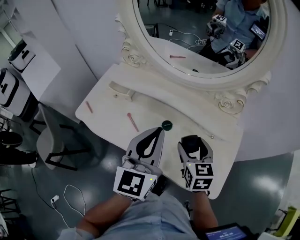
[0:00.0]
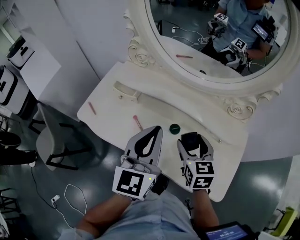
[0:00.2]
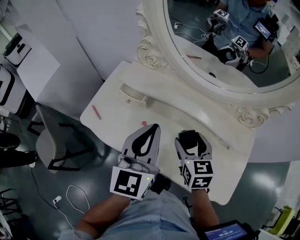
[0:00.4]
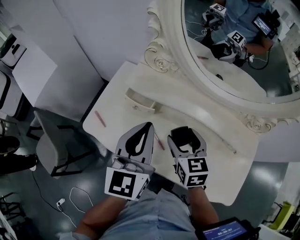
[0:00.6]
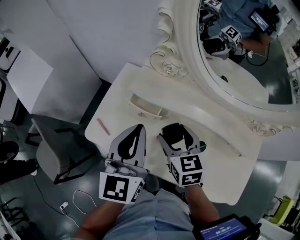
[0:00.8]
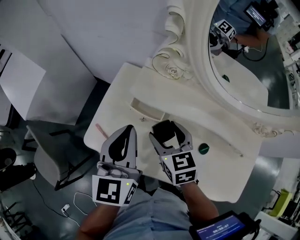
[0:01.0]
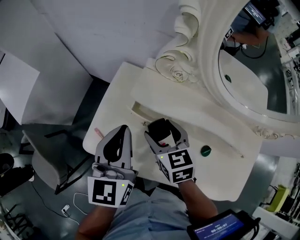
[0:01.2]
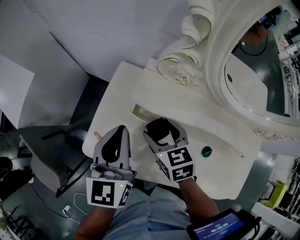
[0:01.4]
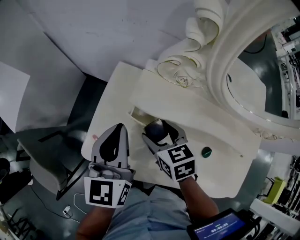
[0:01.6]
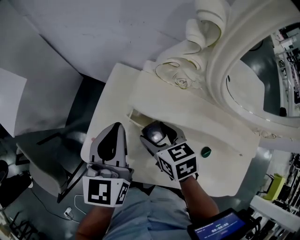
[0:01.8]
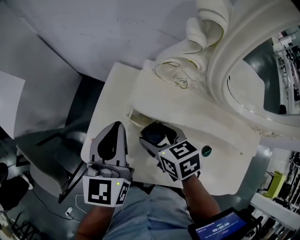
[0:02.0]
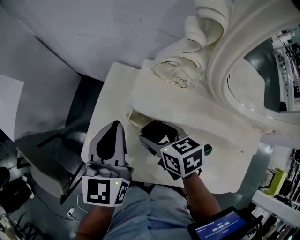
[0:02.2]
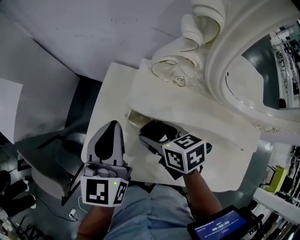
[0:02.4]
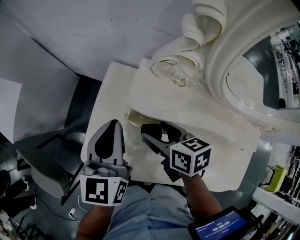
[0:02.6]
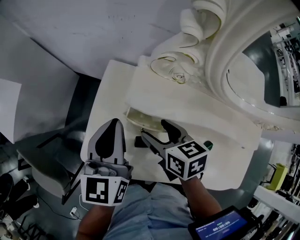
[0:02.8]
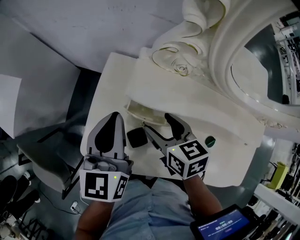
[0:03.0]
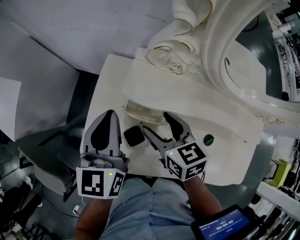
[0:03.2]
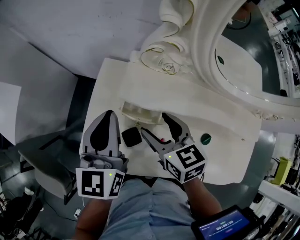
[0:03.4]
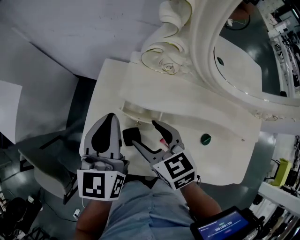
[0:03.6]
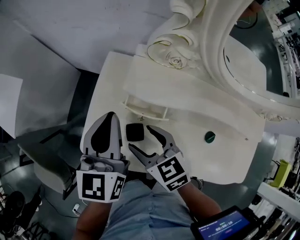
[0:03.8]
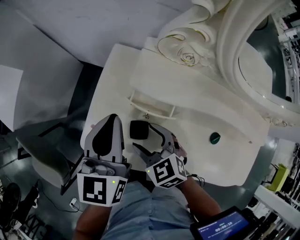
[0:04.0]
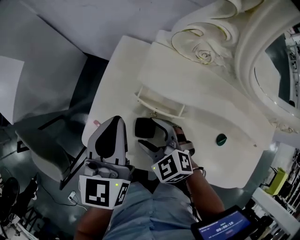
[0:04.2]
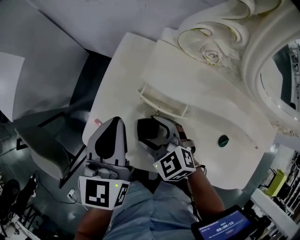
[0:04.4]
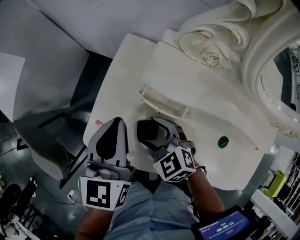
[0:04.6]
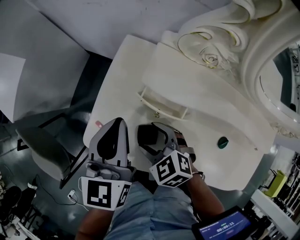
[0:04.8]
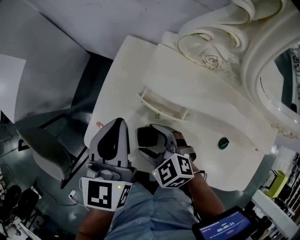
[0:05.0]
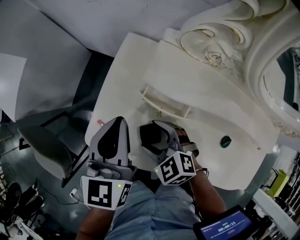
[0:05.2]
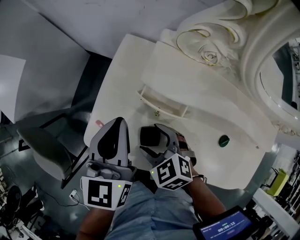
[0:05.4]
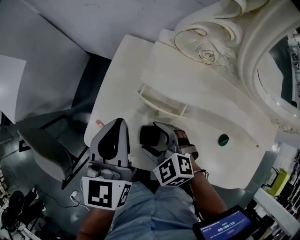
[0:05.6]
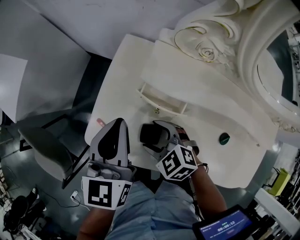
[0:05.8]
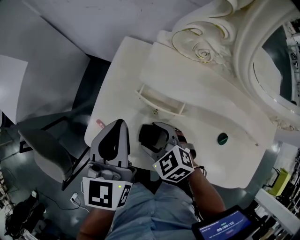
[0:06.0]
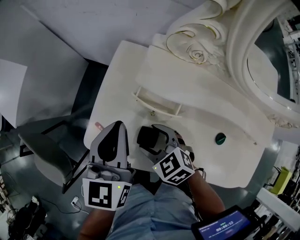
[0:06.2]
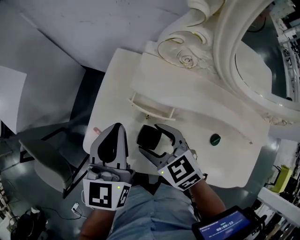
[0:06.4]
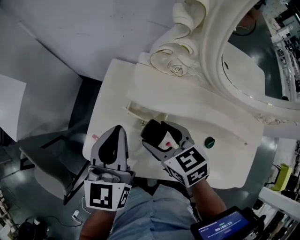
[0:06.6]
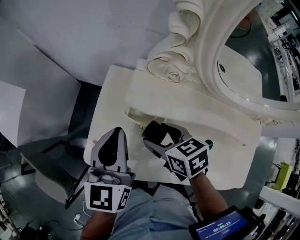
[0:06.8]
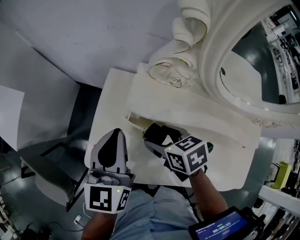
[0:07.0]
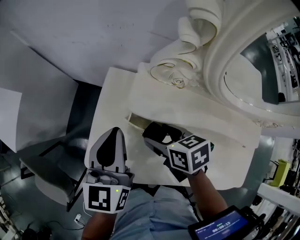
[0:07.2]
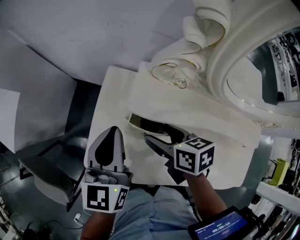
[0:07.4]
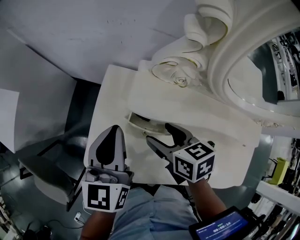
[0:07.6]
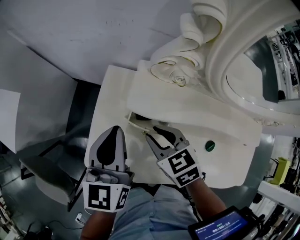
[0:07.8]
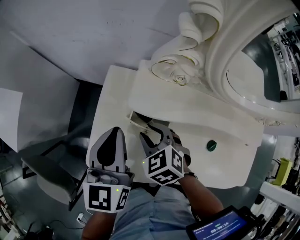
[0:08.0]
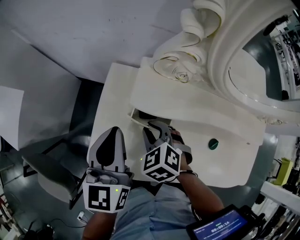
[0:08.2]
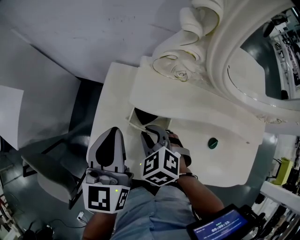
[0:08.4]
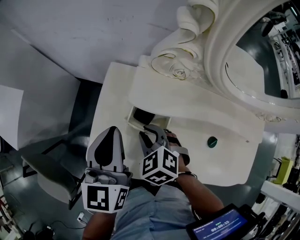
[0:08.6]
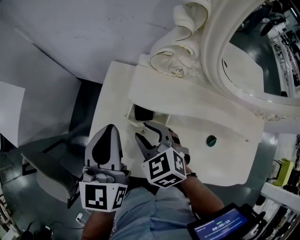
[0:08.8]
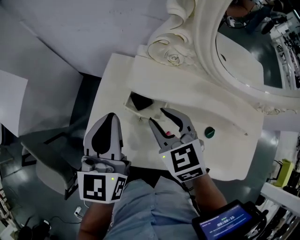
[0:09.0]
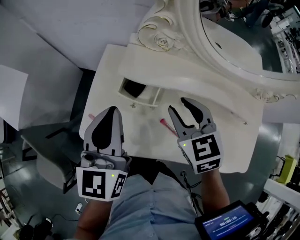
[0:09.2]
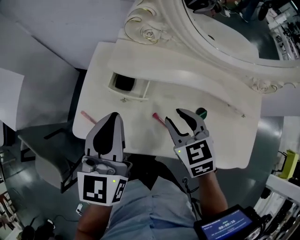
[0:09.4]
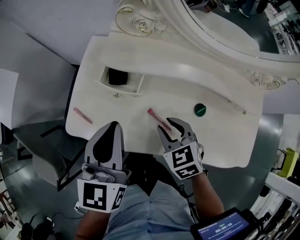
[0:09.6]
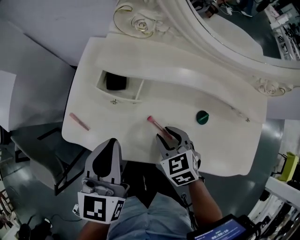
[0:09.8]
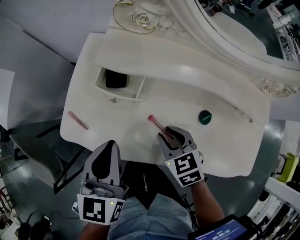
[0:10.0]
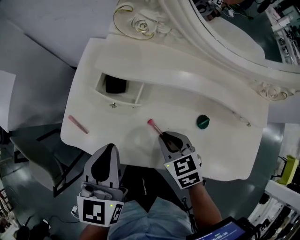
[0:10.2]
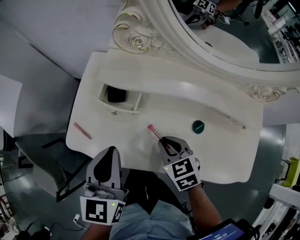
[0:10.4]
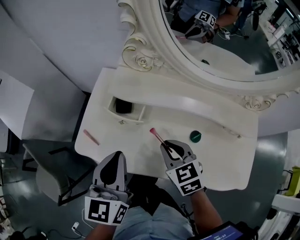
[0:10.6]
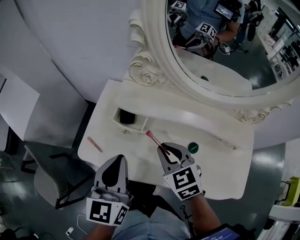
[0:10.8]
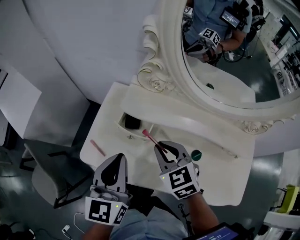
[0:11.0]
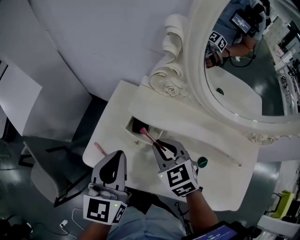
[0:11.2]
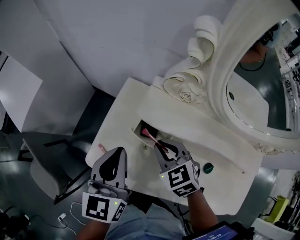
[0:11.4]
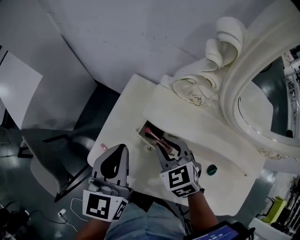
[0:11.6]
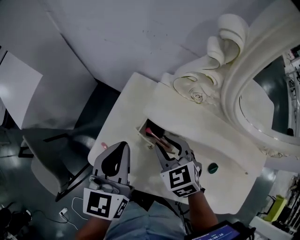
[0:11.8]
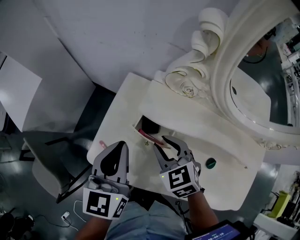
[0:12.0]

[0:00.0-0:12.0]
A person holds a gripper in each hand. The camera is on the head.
0:00.0 to 0:01.6: Both grippers move to the left and forward, about 40 cm. The right gripper turns by about 20 degrees.
0:03.0 to 0:04.4: The left gripper changes place by roughly 5 cm. The right gripper goes roughly 15 cm to the left, downward and backward, and rolls counterclockwise, seen from behind, by approximately 40 degrees.
0:04.4 to 0:06.0: There are only small adjustments of the grippers.
0:06.0 to 0:07.6: The left gripper is displaced forward by roughly 5 cm, while the right gripper goes approximately 15 cm to the right, upward and forward, and rotates around the line of its fingers by roughly 50 degrees, clockwise from behind.
0:07.6 to 0:09.0: The right gripper is displaced upward by approximately 5 cm, swivels roughly 40 degrees, and closes up, while the left gripper changes place by roughly 5 cm.
0:09.0 to 0:10.4: The right gripper travels backward, downward and to the right by approximately 20 cm, while the left gripper shifts approximately 15 cm backward, to the right and downward.
0:10.4 to 0:12.0: The right gripper travels forward, to the left and upward by some 20 cm, and changes its angle by some 20 degrees; the left gripper moves forward and to the left, about 15 cm.

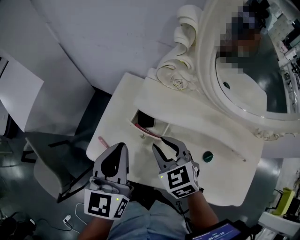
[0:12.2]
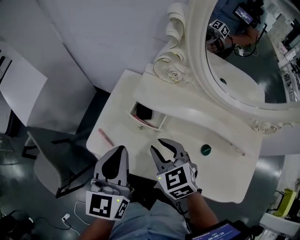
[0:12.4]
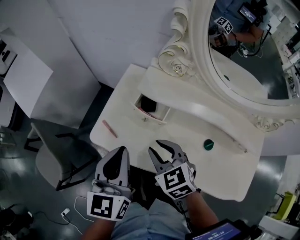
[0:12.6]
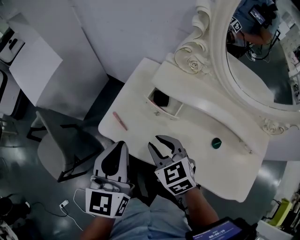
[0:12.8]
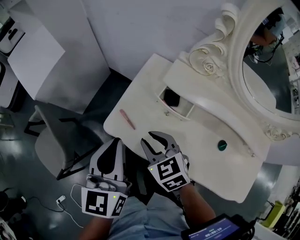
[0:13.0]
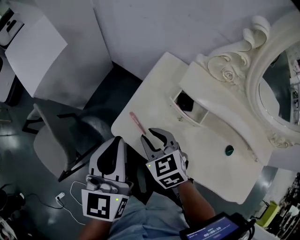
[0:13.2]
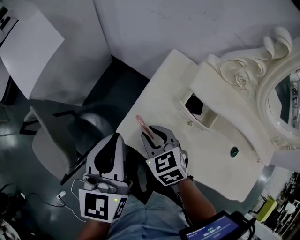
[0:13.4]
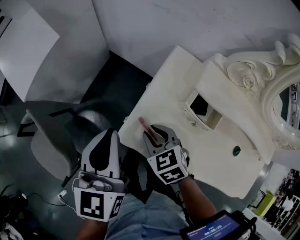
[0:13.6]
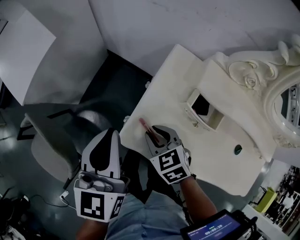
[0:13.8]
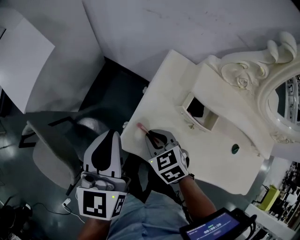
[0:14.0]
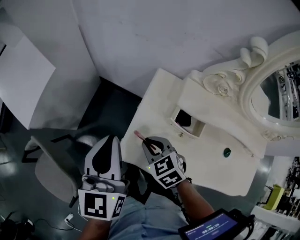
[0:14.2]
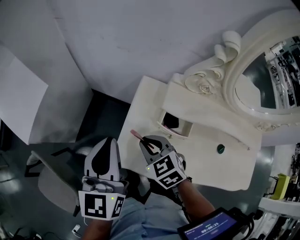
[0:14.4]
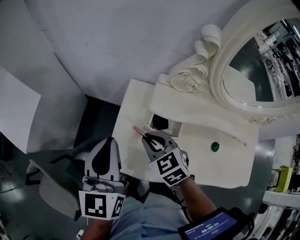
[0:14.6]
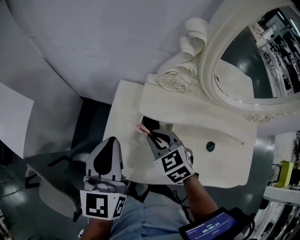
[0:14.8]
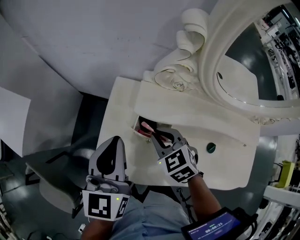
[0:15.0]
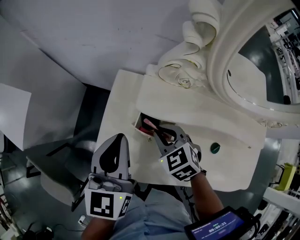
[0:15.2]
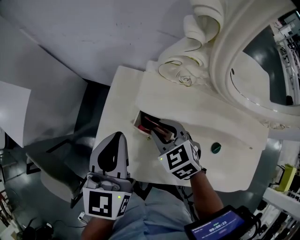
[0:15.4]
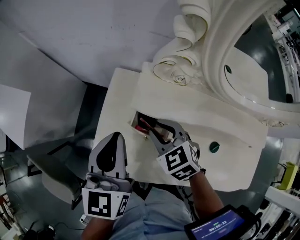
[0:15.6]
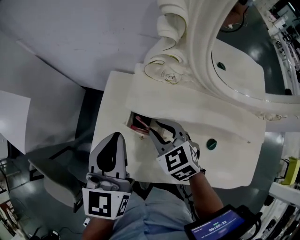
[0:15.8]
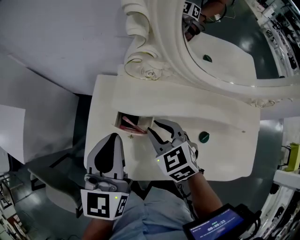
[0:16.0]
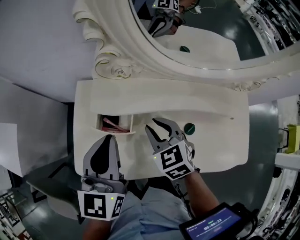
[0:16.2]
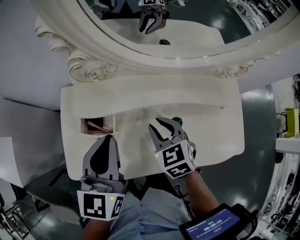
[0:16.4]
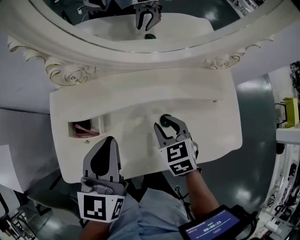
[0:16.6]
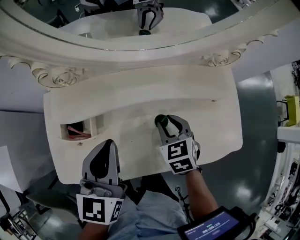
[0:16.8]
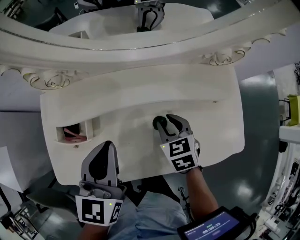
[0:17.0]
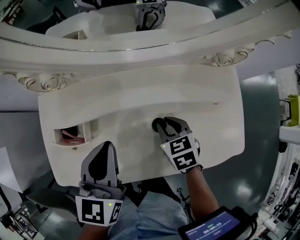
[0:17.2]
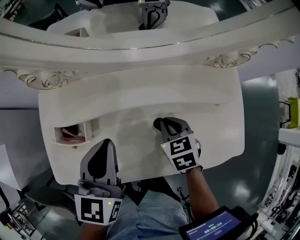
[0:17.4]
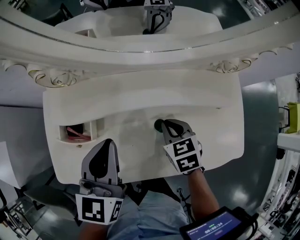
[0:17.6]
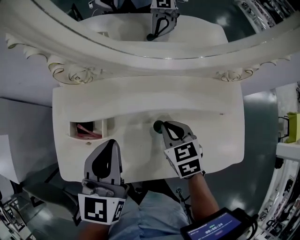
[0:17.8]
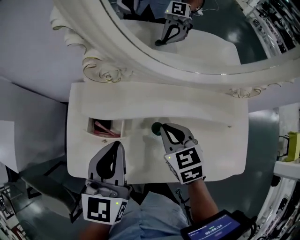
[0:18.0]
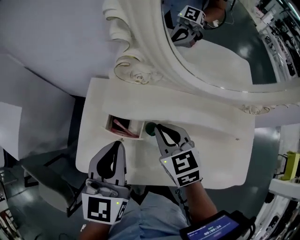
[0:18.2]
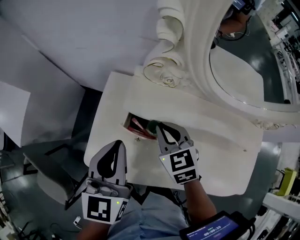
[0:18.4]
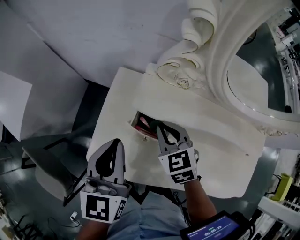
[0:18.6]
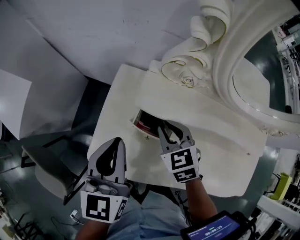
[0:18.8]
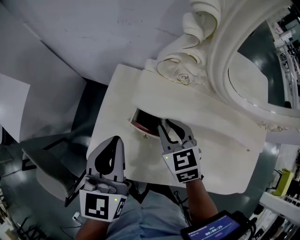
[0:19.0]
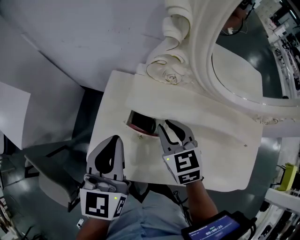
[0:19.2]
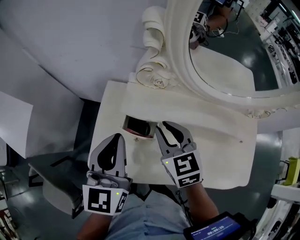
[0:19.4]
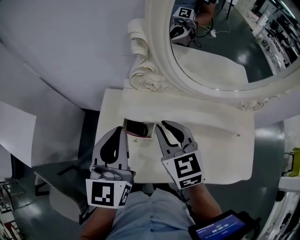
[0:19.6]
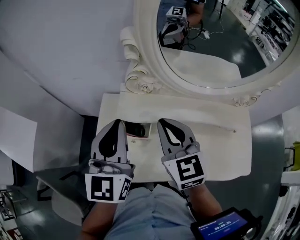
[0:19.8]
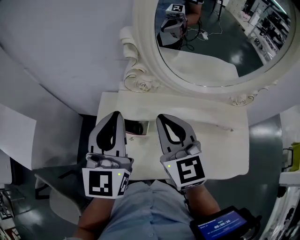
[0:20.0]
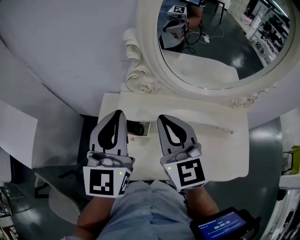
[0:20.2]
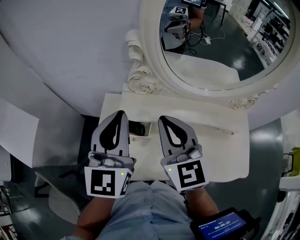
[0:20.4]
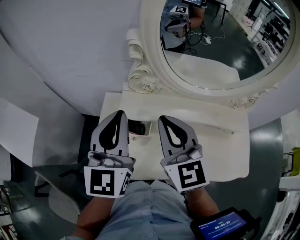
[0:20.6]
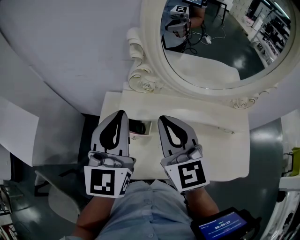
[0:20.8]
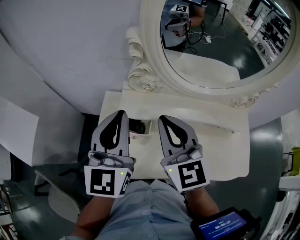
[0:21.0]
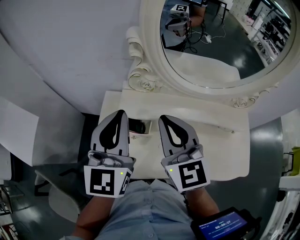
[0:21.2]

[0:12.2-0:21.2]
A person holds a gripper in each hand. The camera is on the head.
0:12.2 to 0:13.8: The right gripper heads to the left and downward, covering approximately 20 cm; the left gripper shifts some 20 cm to the left.
0:13.8 to 0:15.2: The grippers both shift to the right by roughly 20 cm.
0:15.2 to 0:16.6: The left gripper shifts by some 20 cm, and changes its angle by roughly 20 degrees, while the right gripper changes place by some 25 cm, and rotates some 40 degrees.
0:16.6 to 0:18.2: The right gripper goes approximately 15 cm to the left and upward, and changes its angle by approximately 20 degrees. The left gripper shifts about 10 cm to the left.
0:18.2 to 0:19.8: The right gripper shifts approximately 15 cm upward, and rotates some 20 degrees. Meanwhile the left gripper goes approximately 10 cm upward.
0:19.8 to 0:21.2: The right gripper shifts roughly 5 cm upward.

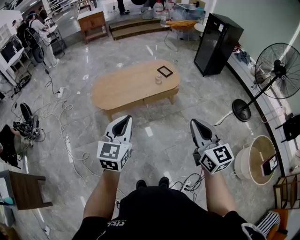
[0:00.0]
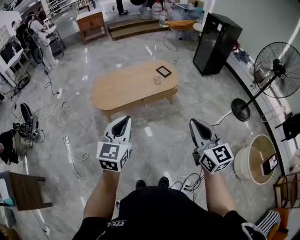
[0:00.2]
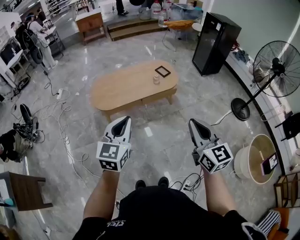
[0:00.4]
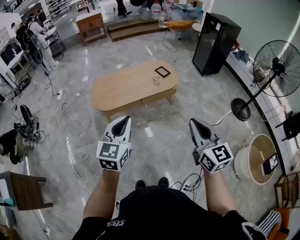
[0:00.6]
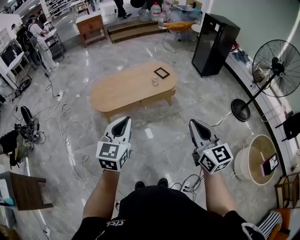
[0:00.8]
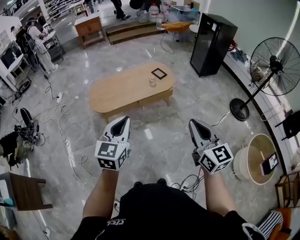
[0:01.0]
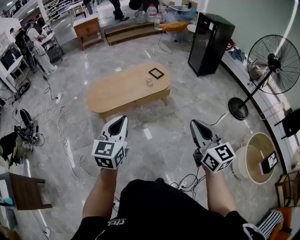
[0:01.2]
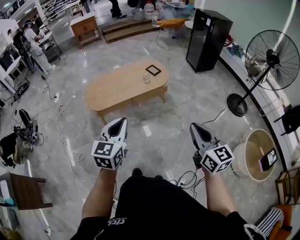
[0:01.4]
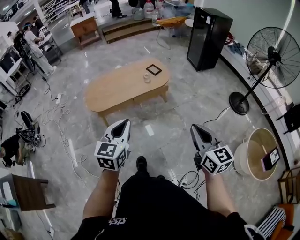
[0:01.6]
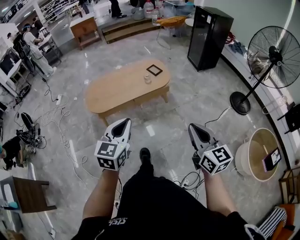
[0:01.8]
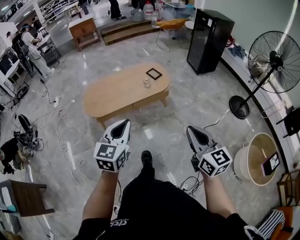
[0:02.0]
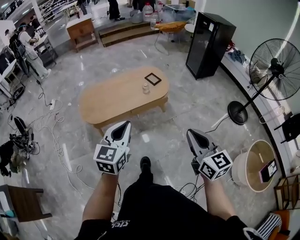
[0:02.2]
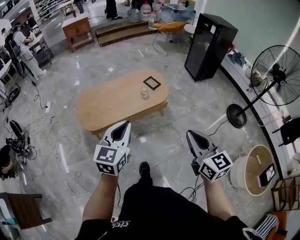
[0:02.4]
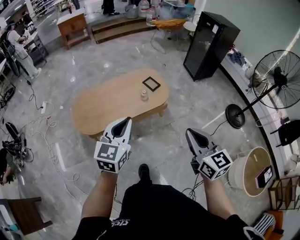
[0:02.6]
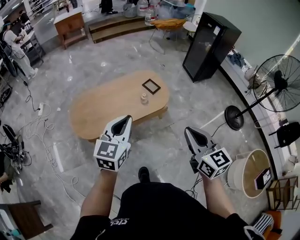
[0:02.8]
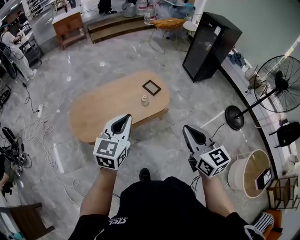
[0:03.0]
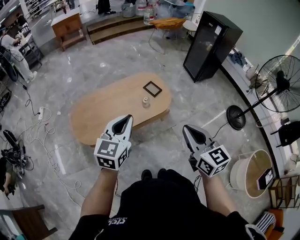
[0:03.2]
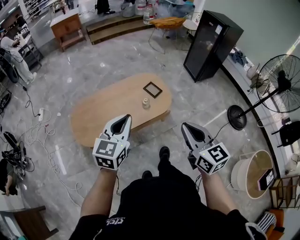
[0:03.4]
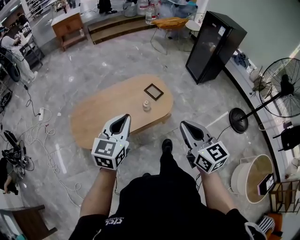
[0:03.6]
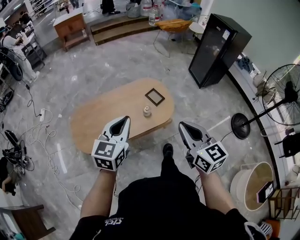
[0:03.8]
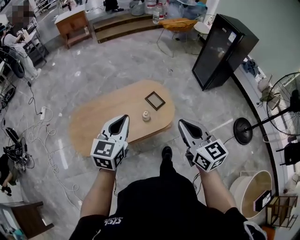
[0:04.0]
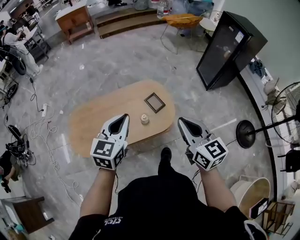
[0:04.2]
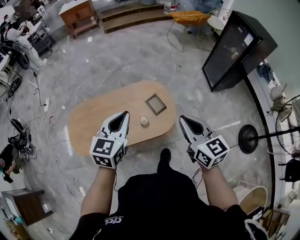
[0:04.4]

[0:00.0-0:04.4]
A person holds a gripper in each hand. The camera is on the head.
0:00.0 to 0:01.4: The grippers both shift to the right by roughly 10 cm.
0:01.4 to 0:03.0: The grippers both shift forward by some 35 cm.
0:03.0 to 0:04.4: Both grippers move forward, some 30 cm.
